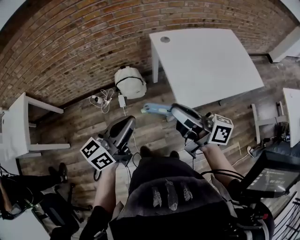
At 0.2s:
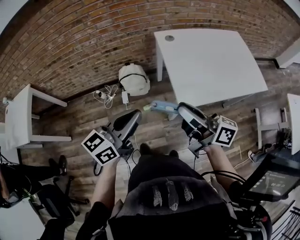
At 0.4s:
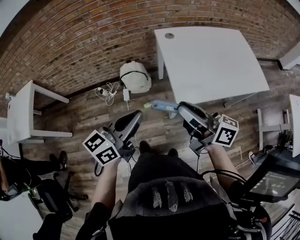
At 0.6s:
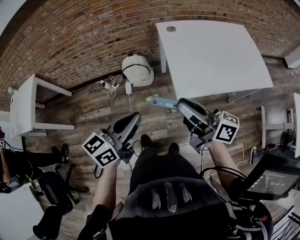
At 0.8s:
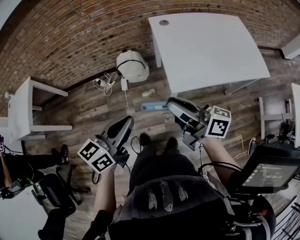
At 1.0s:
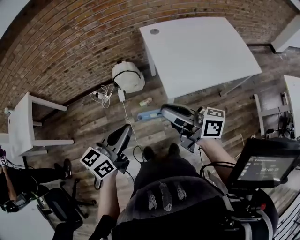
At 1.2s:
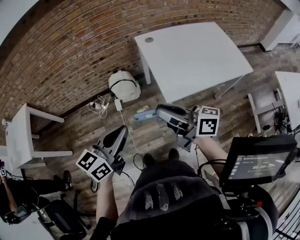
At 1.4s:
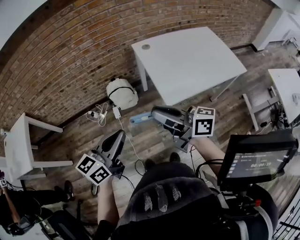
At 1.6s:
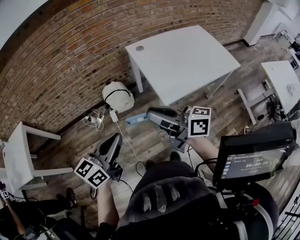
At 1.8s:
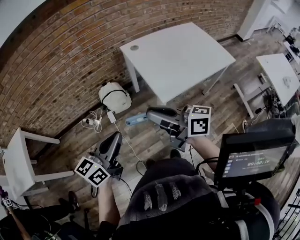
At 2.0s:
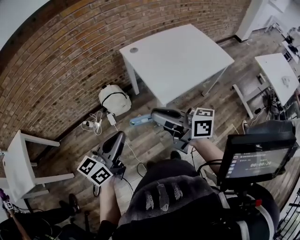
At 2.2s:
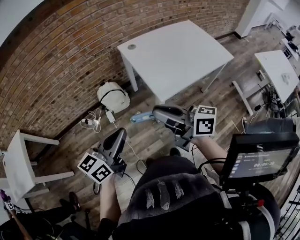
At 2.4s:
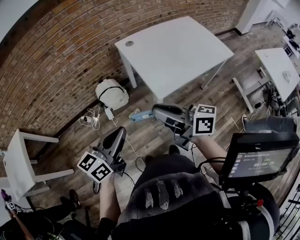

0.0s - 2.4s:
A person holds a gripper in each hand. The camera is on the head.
0.0s - 1.2s: The left gripper travels backward by roughly 5 cm.

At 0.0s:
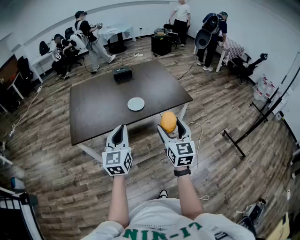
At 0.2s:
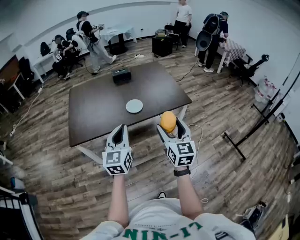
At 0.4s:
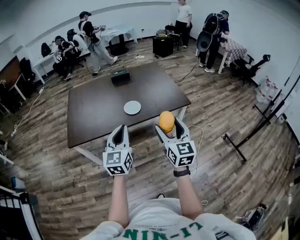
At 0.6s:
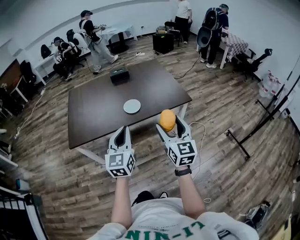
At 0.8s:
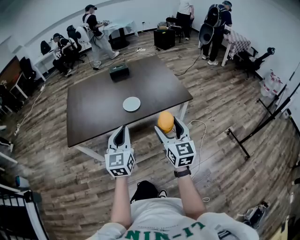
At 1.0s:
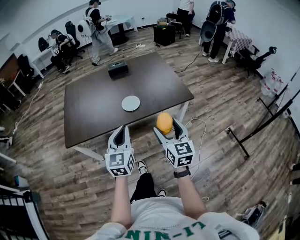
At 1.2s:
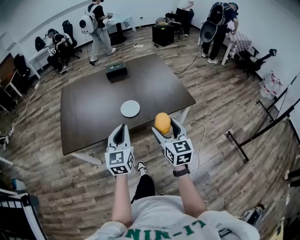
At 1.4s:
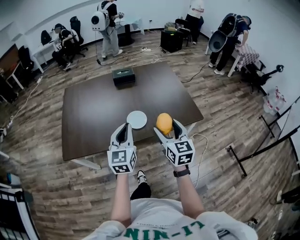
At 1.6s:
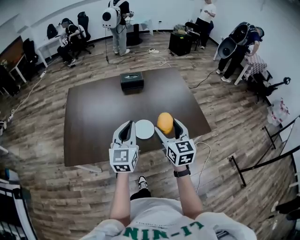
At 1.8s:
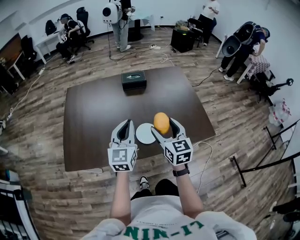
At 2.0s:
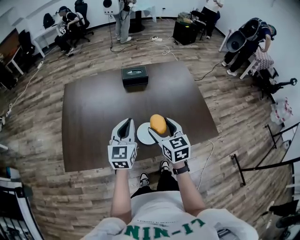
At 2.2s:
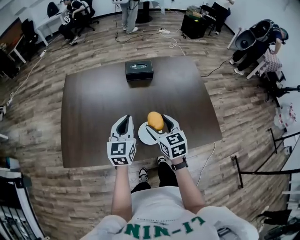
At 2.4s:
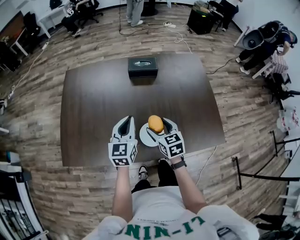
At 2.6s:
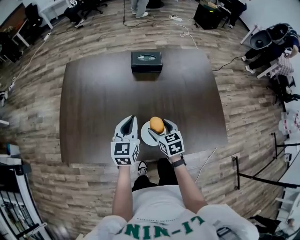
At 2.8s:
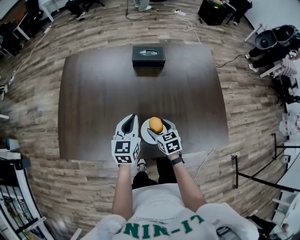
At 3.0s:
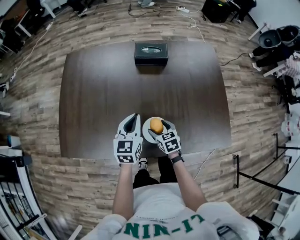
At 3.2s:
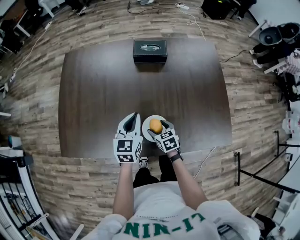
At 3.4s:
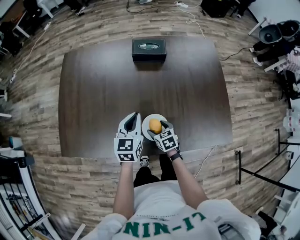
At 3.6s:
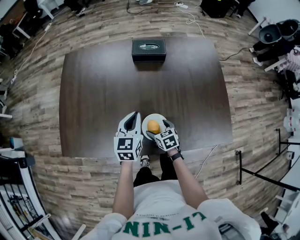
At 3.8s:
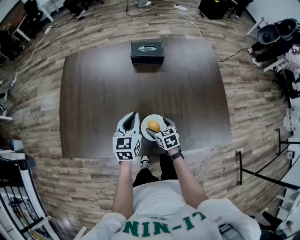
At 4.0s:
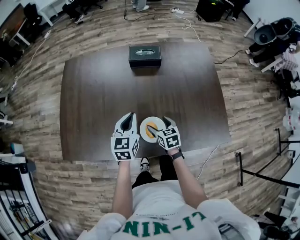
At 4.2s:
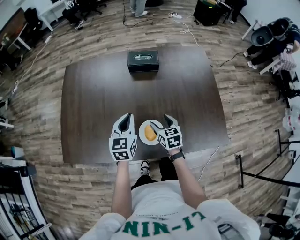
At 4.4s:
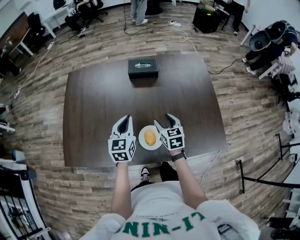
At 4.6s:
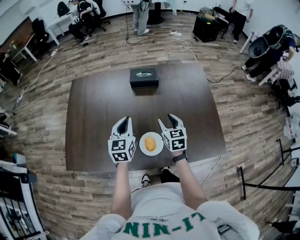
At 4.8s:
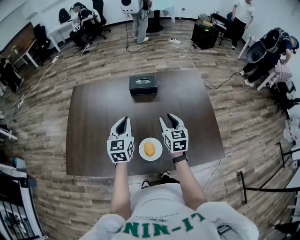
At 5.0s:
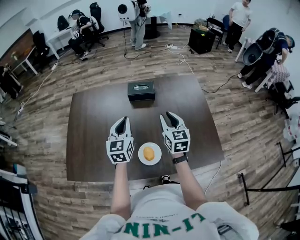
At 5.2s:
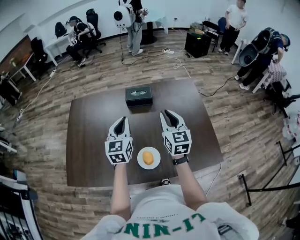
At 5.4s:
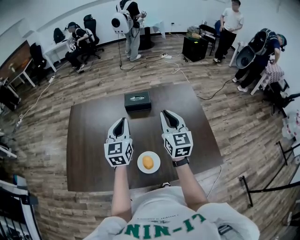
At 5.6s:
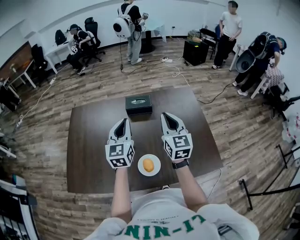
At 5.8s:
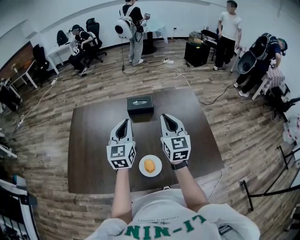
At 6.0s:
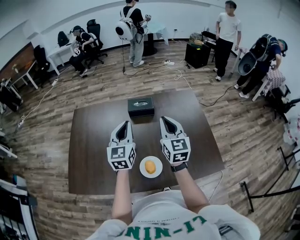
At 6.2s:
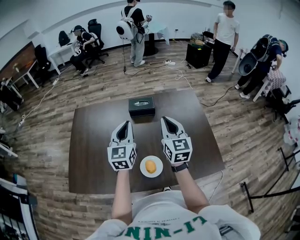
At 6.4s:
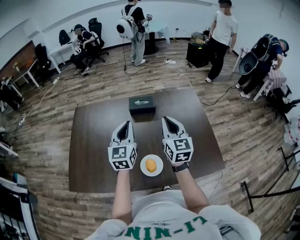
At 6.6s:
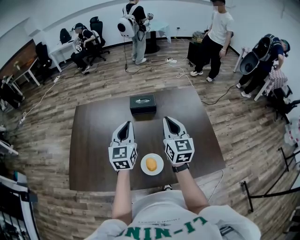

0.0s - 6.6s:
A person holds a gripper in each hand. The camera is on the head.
0.0s - 1.6s: The two grippers go about 40 cm forward.
1.6s - 3.2s: The left gripper goes some 30 cm forward and downward, and turns by roughly 20 degrees; the right gripper shifts roughly 40 cm downward and forward, and points its fingers roughly 40 degrees further downward.
3.2s - 5.0s: The left gripper moves upward, approximately 15 cm. Meanwhile the right gripper travels upward by about 30 cm, points its fingers about 30 degrees further upward, and closes.
5.0s - 6.6s: The grippers both shift upward by approximately 10 cm.

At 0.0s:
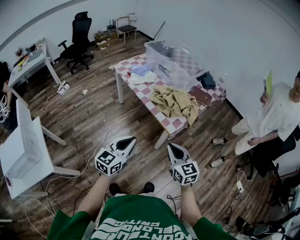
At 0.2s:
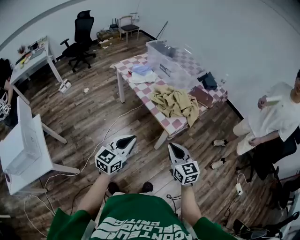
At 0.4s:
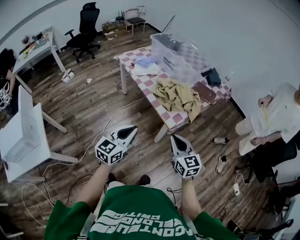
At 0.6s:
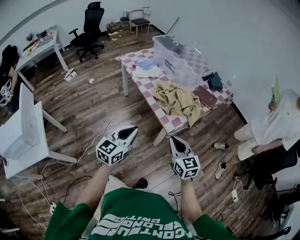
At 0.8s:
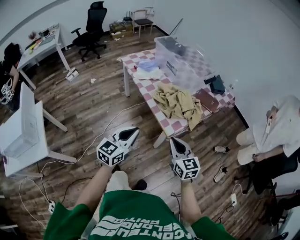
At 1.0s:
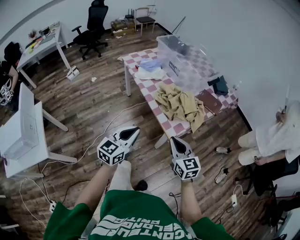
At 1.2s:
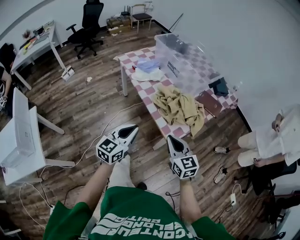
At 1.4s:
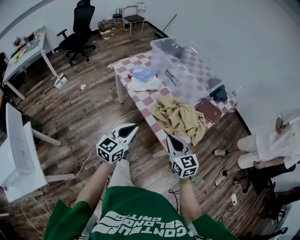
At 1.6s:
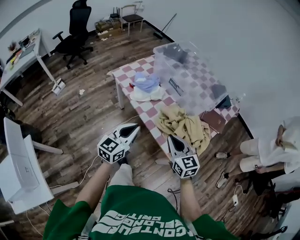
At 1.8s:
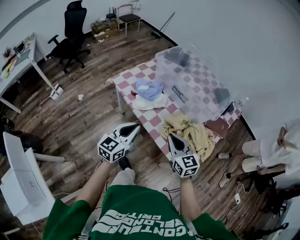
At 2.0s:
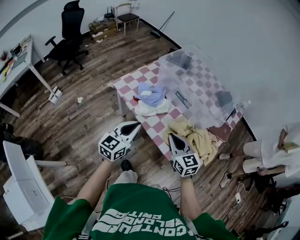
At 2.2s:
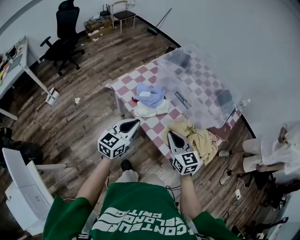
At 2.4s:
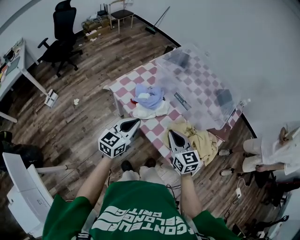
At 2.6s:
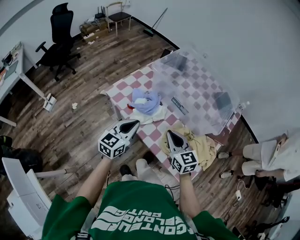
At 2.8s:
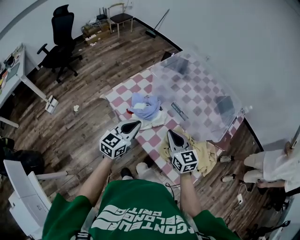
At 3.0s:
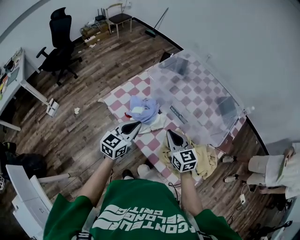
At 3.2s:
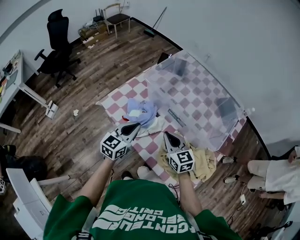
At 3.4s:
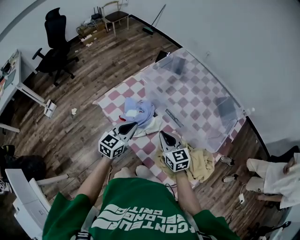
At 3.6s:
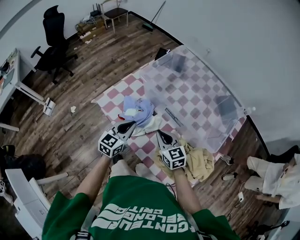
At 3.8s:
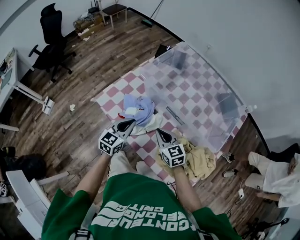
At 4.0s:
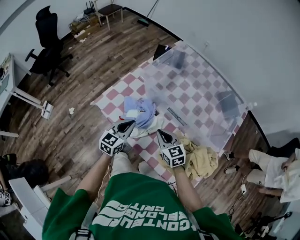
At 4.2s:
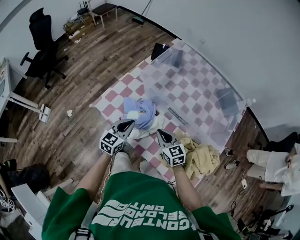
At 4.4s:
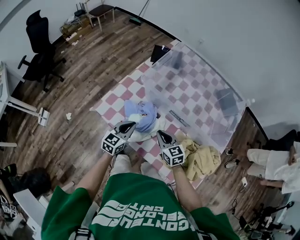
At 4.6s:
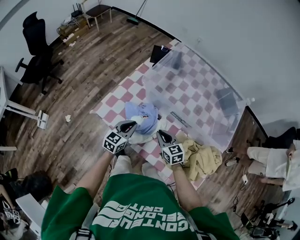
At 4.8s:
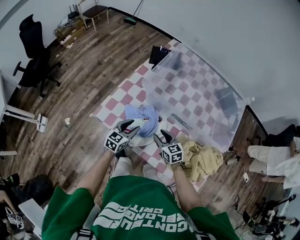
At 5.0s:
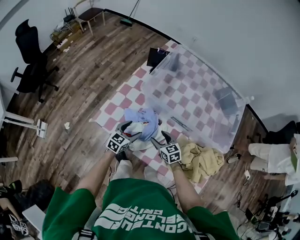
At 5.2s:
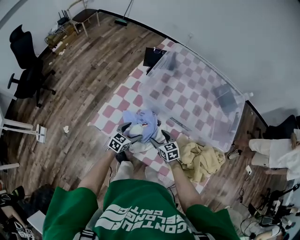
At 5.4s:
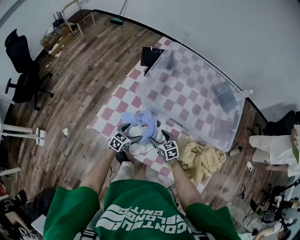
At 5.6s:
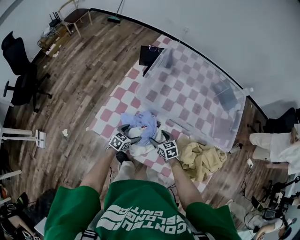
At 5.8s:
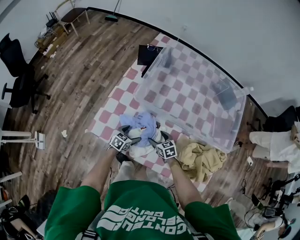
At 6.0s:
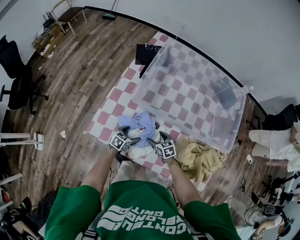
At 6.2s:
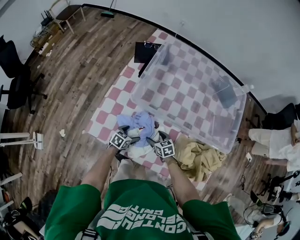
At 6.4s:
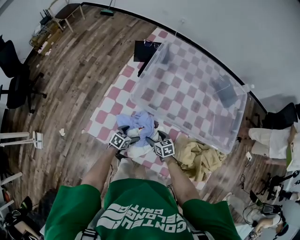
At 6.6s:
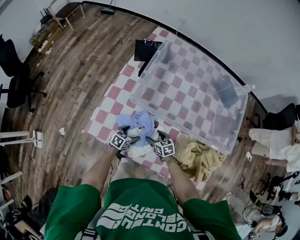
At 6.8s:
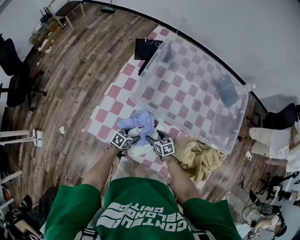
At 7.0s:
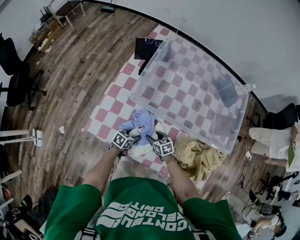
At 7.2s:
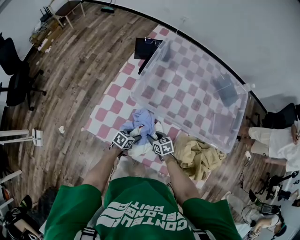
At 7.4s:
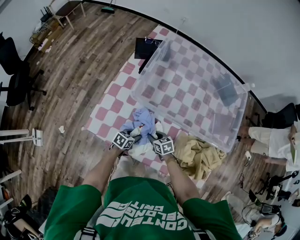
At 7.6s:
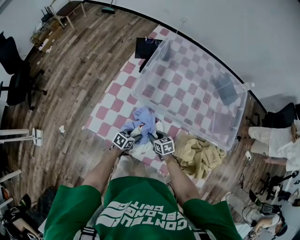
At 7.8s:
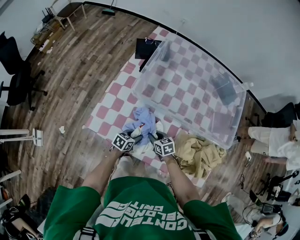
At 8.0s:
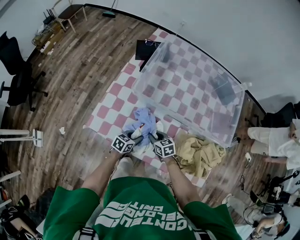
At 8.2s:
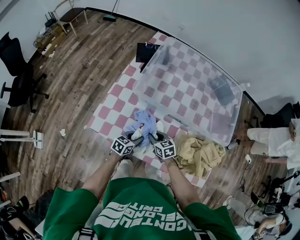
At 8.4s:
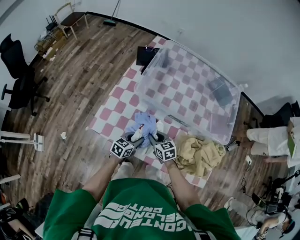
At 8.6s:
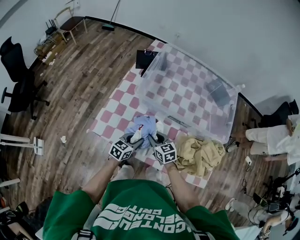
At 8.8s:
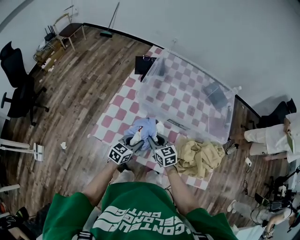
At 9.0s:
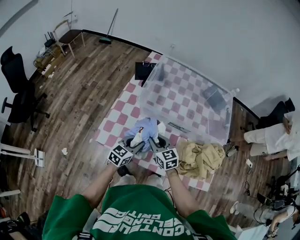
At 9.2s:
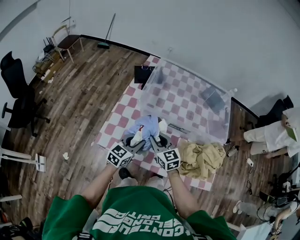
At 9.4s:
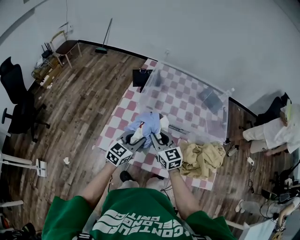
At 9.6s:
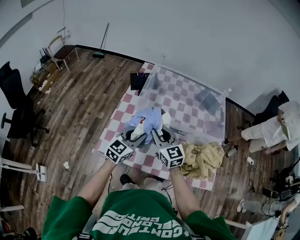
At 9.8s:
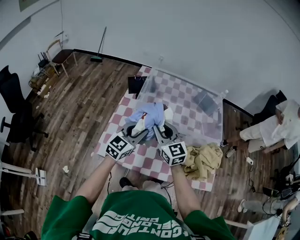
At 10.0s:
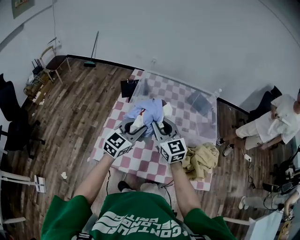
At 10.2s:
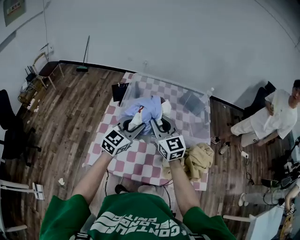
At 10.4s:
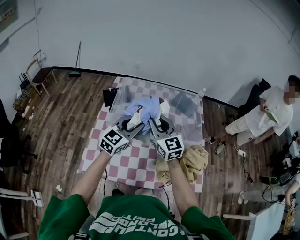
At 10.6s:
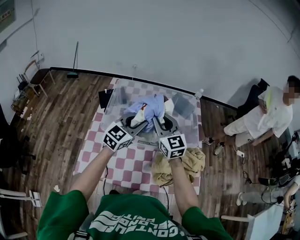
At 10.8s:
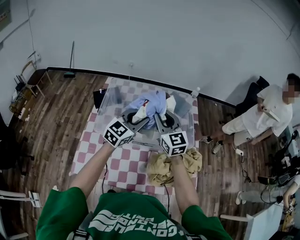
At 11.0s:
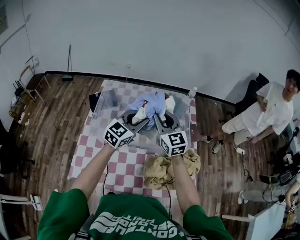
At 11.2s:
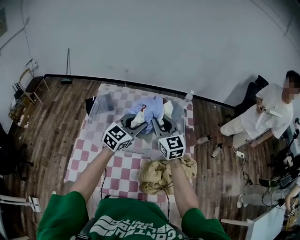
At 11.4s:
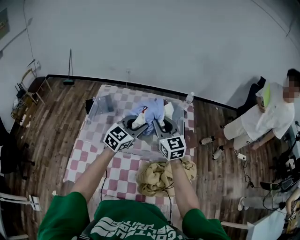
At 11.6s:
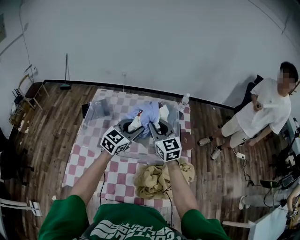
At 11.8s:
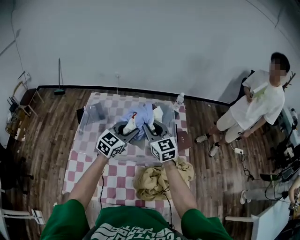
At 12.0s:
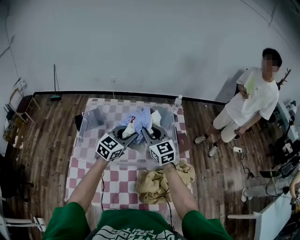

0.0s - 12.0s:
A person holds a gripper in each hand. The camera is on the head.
0.0s - 1.6s: The two grippers go about 35 cm forward.
1.6s - 3.0s: The grippers both shift forward by some 30 cm.
3.0s - 4.4s: The grippers both shift downward and forward by approximately 15 cm.
4.4s - 6.0s: The two grippers go some 20 cm downward. The right gripper rotates roughly 30 degrees, and opens; the left gripper changes its angle by roughly 40 degrees, and opens up.
6.0s - 7.6s: The right gripper closes its fingers. Meanwhile the left gripper closes its fingers.
7.6s - 9.0s: Both grippers move upward, about 20 cm. The left gripper turns by some 30 degrees. Meanwhile the right gripper swivels approximately 30 degrees.
9.0s - 10.4s: The two grippers go about 25 cm upward and forward. The left gripper changes its angle by some 30 degrees. Meanwhile the right gripper turns by about 30 degrees.
10.4s - 12.0s: Both grippers move forward and to the right, about 20 cm.

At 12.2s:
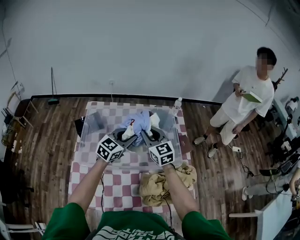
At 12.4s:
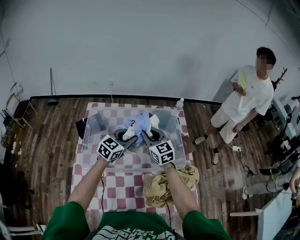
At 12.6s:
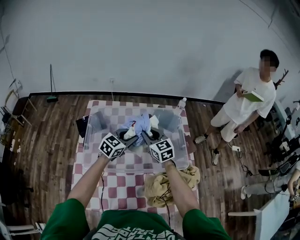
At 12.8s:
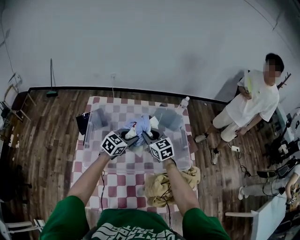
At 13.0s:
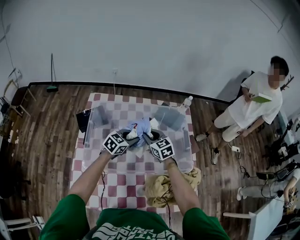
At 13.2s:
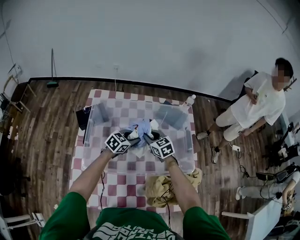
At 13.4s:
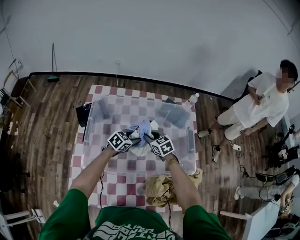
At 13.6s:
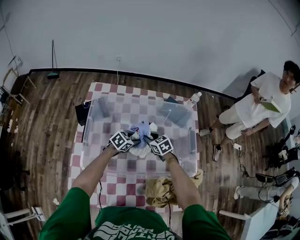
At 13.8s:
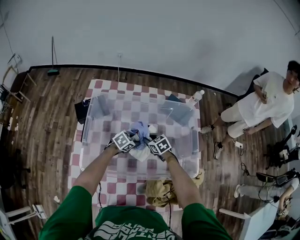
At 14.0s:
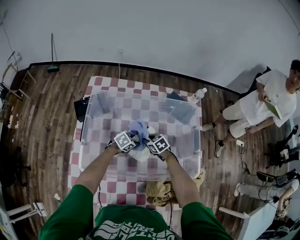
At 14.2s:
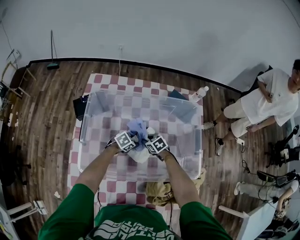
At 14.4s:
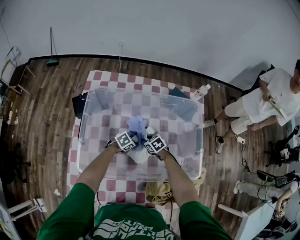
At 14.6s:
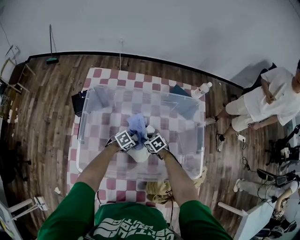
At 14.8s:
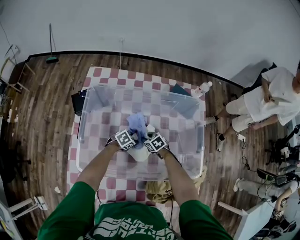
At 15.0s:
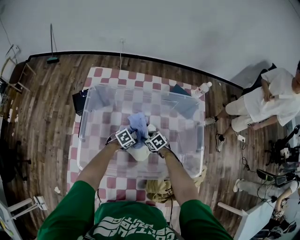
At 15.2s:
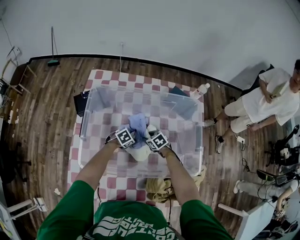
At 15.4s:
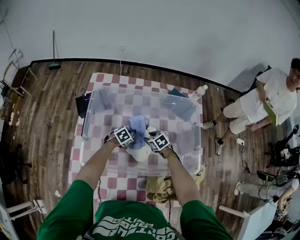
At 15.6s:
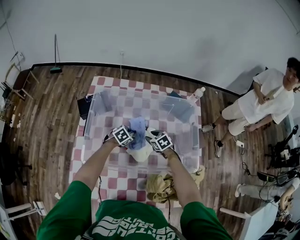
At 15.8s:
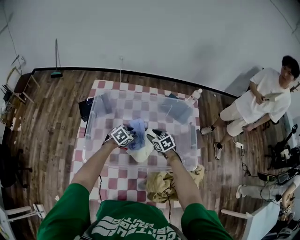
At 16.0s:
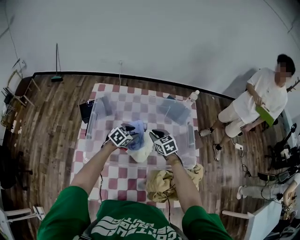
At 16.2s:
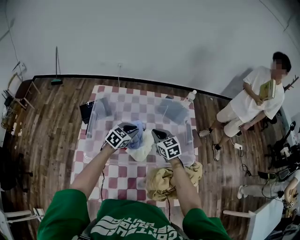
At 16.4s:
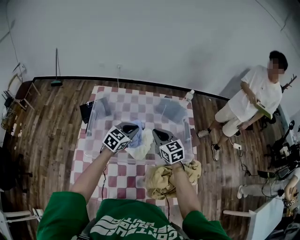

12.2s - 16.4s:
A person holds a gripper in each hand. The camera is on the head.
12.2s - 13.6s: The grippers both shift downward by some 25 cm. The right gripper points its fingers some 40 degrees further downward. Meanwhile the left gripper changes its angle by about 30 degrees.
13.6s - 15.0s: Both grippers travel together downward, some 15 cm.
15.0s - 16.4s: Both grippers travel together upward, approximately 30 cm. The left gripper tips its fingers upward by about 30 degrees, while the right gripper angles its fingers upward, by roughly 40 degrees, and closes.
